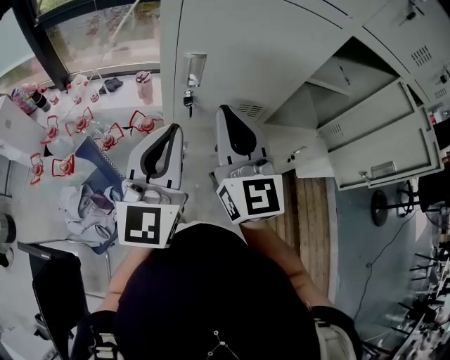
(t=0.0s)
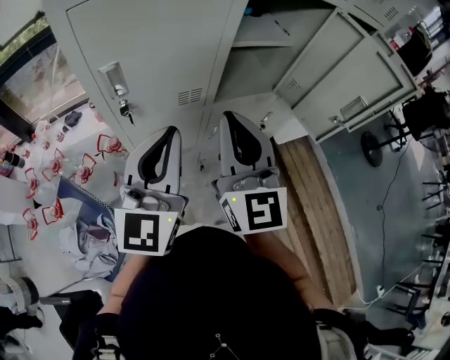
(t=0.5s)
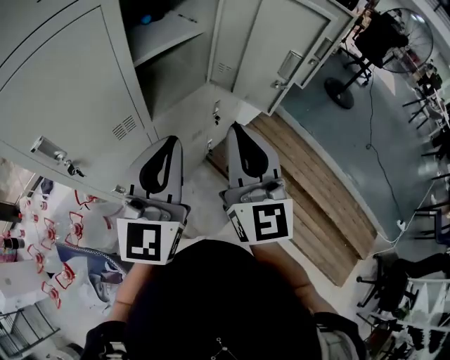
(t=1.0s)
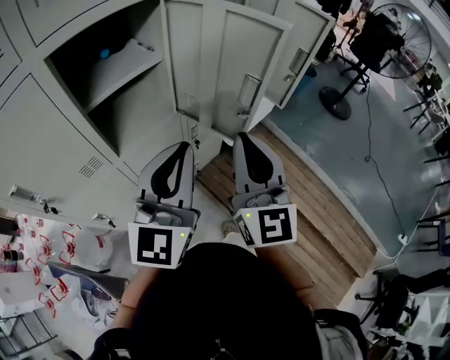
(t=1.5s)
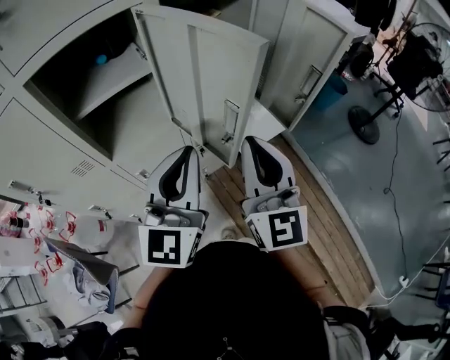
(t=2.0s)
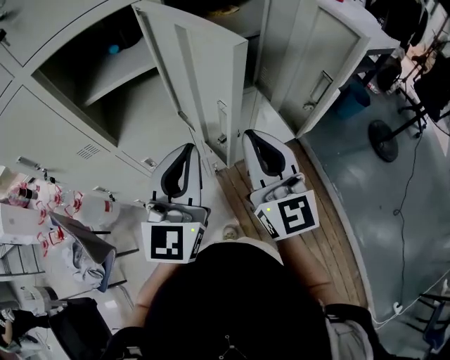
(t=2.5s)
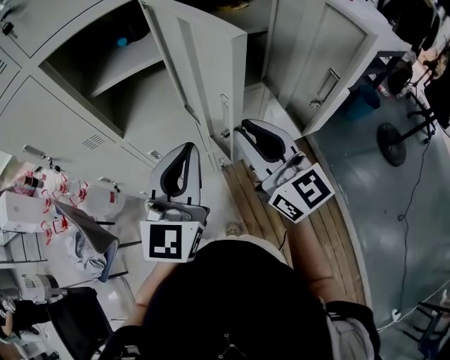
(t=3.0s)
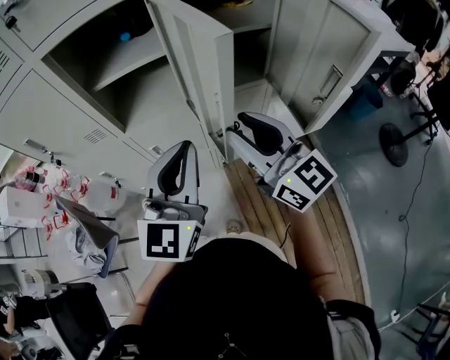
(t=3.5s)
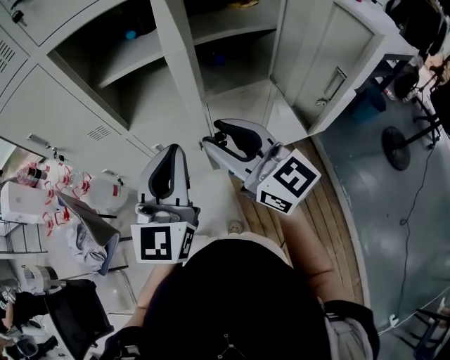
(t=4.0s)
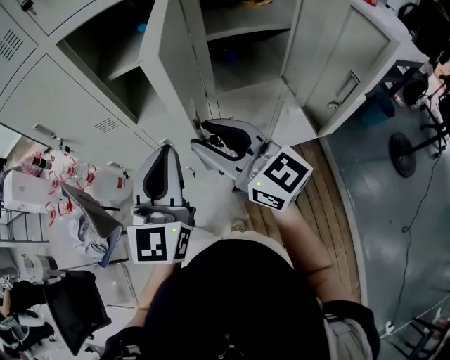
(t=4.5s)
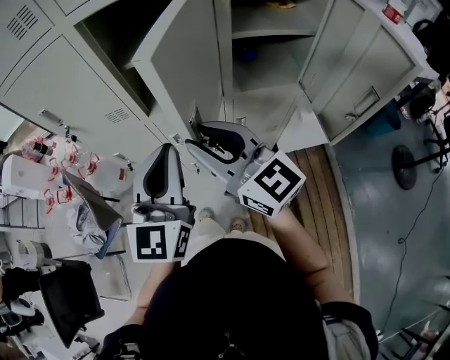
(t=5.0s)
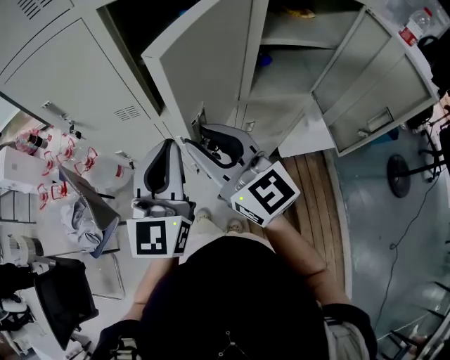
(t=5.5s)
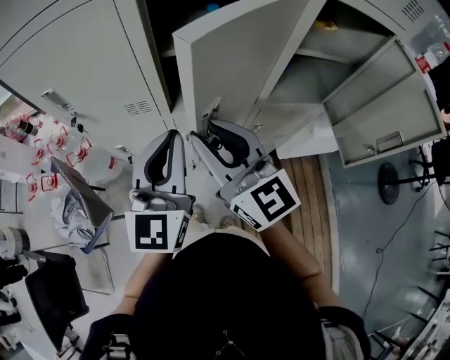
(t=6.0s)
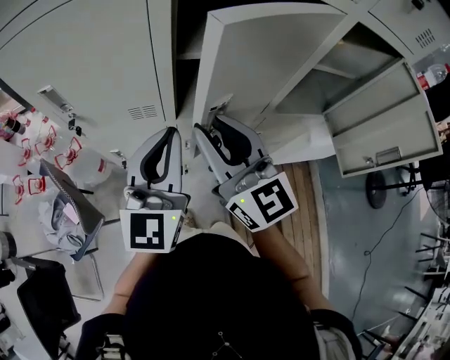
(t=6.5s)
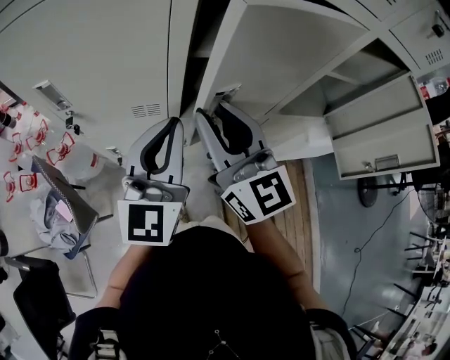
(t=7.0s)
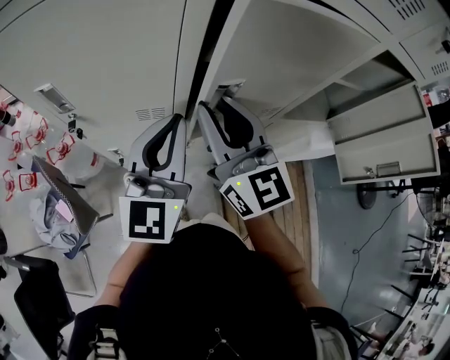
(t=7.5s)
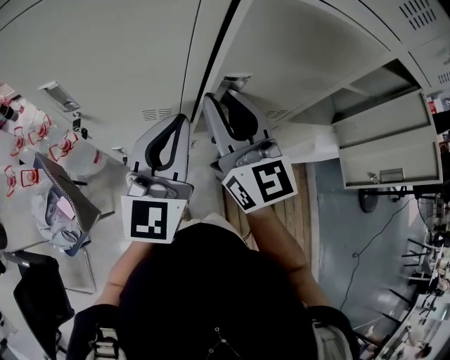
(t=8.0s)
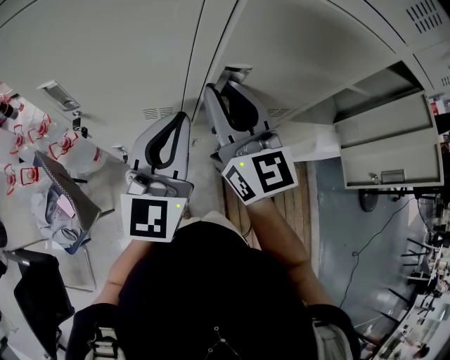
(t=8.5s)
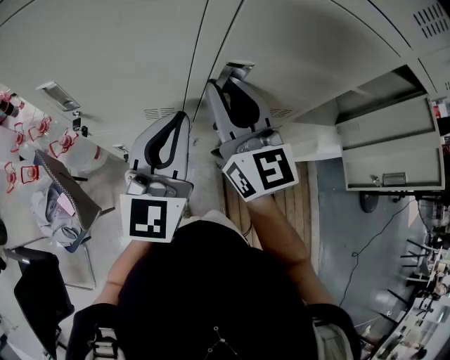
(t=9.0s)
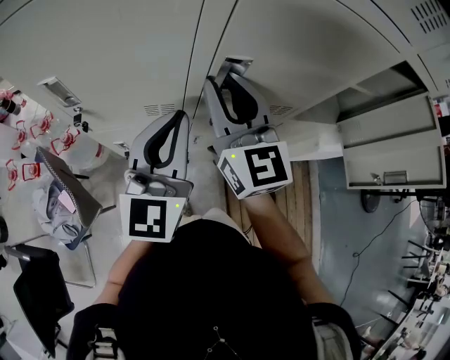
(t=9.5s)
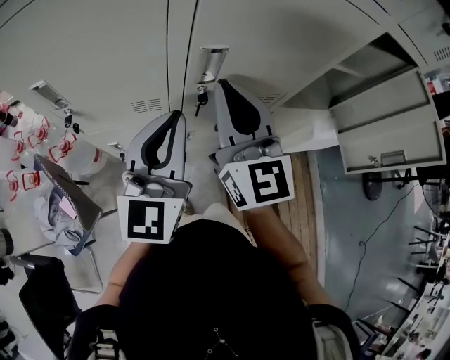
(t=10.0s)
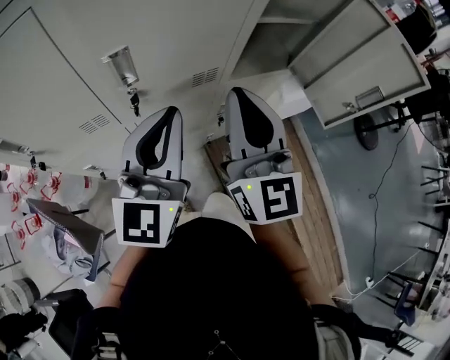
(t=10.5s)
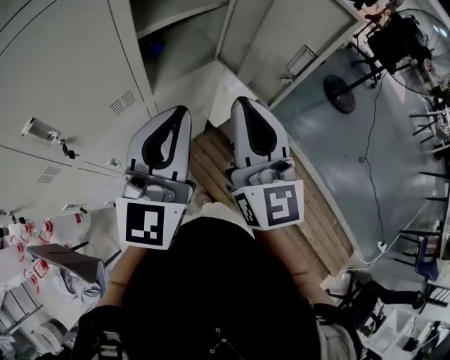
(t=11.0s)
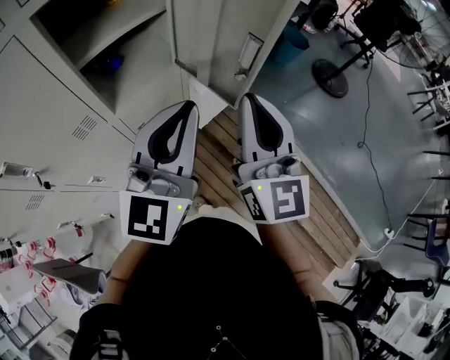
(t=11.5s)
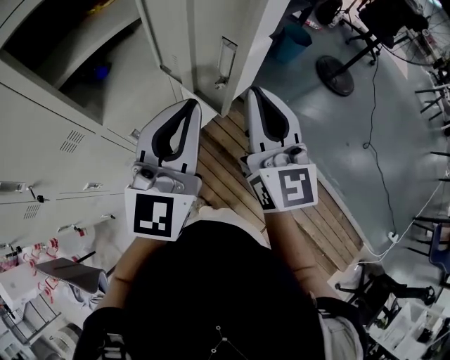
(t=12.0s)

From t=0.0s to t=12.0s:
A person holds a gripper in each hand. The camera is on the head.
From t=0.0s to t=2.0s: The pair of grippers is taken roughly 50 cm. The right gripper turns by approximately 30 degrees, while the left gripper rotates approximately 30 degrees.
From t=2.0s to t=4.0s: The right gripper ends up about 5 cm from where it was, turns by approximately 50 degrees, and opens its fingers.
From t=4.0s to t=6.0s: Both grippers move to the left and forward, some 20 cm.
From t=6.0s to t=8.0s: Both grippers move forward and to the left, some 10 cm.
From t=8.0s to t=10.0s: The right gripper closes.
From t=10.0s to t=12.0s: The two grippers travel together, some 50 cm. The right gripper turns by some 40 degrees, while the left gripper rotates about 40 degrees.

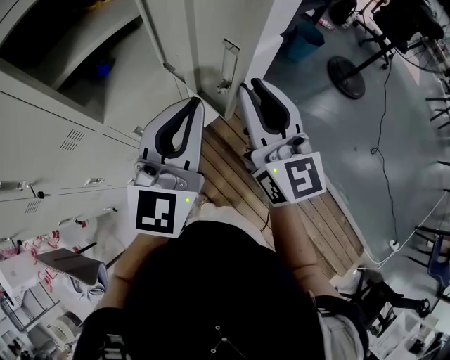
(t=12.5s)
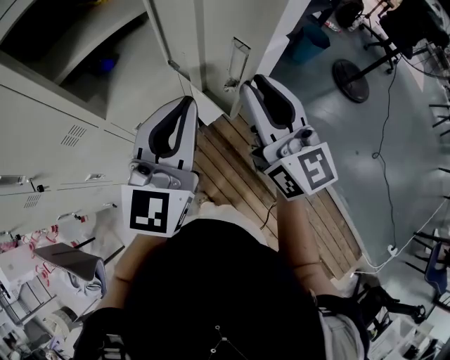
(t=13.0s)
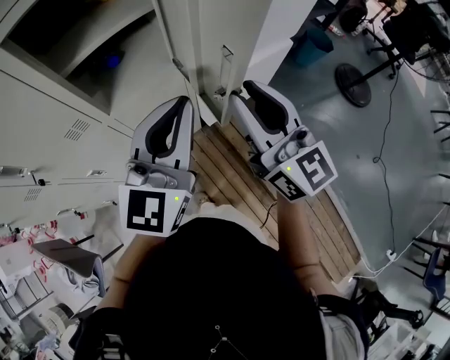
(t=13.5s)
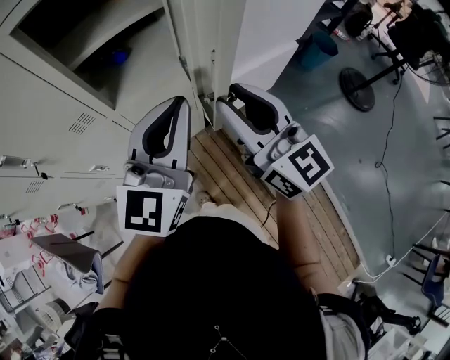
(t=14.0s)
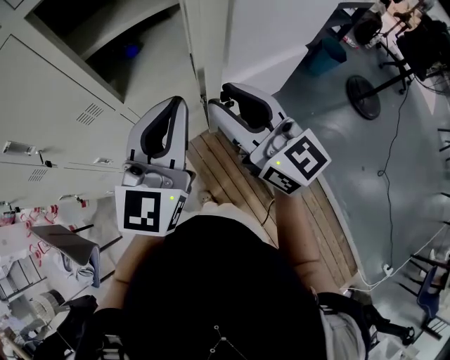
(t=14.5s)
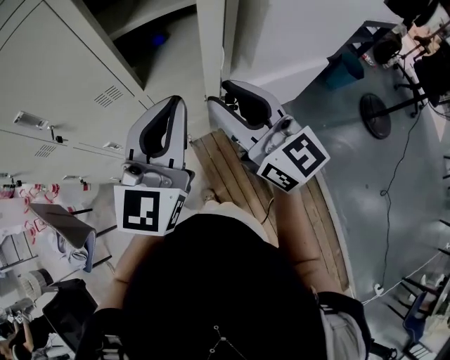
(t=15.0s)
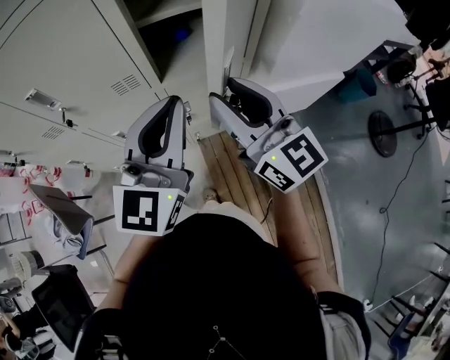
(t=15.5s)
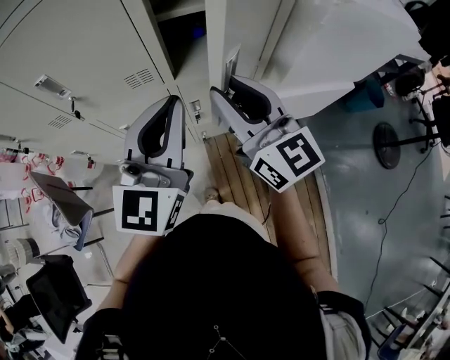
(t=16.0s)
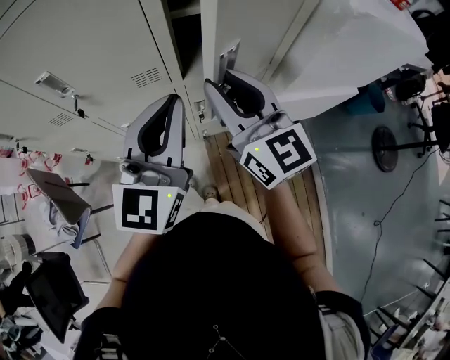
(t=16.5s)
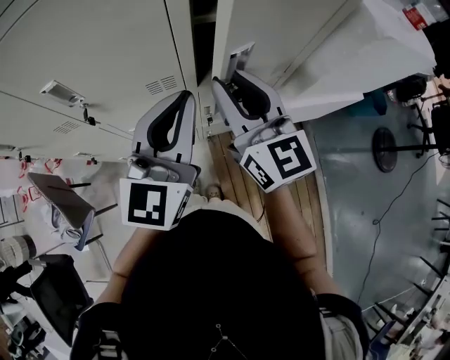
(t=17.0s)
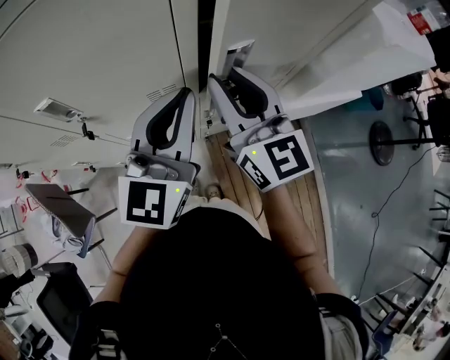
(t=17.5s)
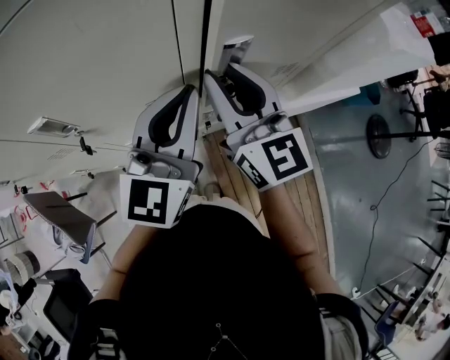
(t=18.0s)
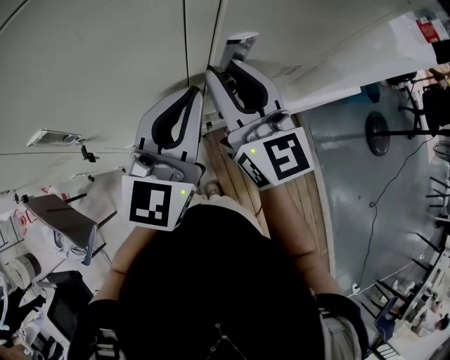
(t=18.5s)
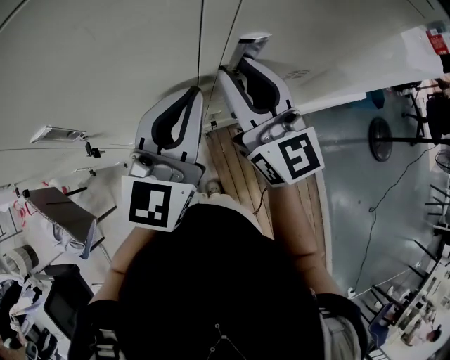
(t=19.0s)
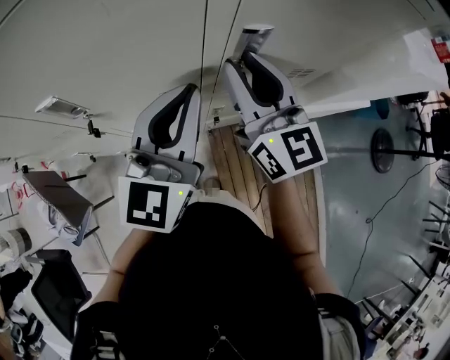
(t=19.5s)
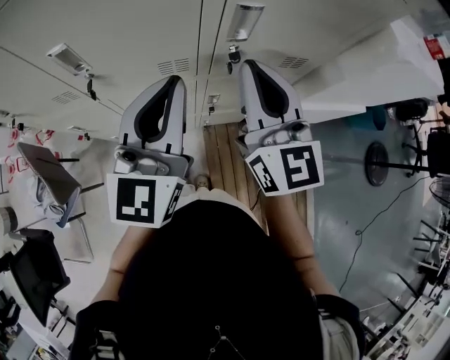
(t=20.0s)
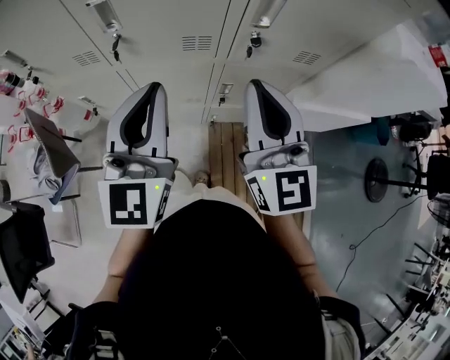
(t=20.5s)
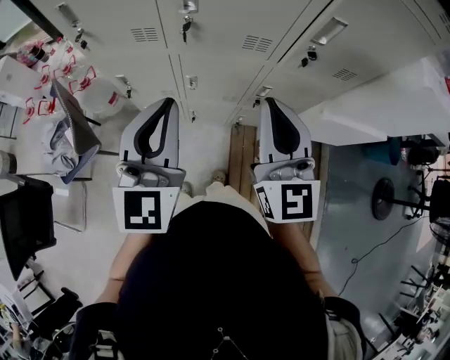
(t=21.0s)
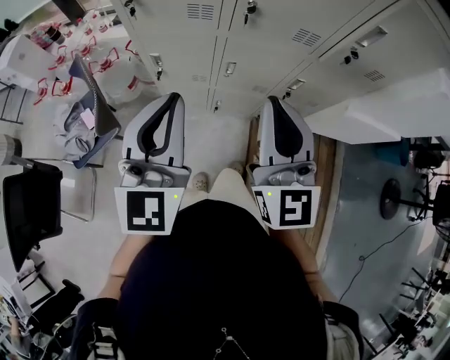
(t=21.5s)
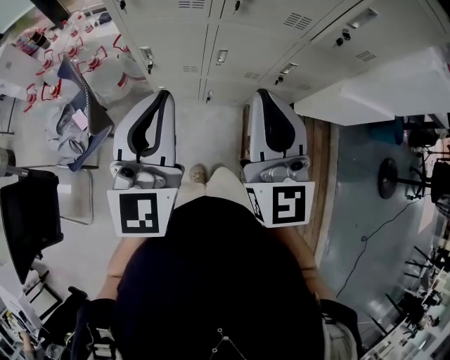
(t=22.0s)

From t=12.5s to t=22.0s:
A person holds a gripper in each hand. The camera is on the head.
From t=12.5s to t=14.5s: Both grippers move to the left, roughly 10 cm. The right gripper turns by roughly 30 degrees.
From t=14.5s to t=16.5s: The left gripper goes about 15 cm to the left. Meanwhile the right gripper travels to the left and forward by some 15 cm.
From t=16.5s to t=18.0s: The right gripper travels forward and to the left by about 10 cm; the left gripper shifts roughly 10 cm forward.
From t=18.0s to t=20.0s: The two grippers go some 5 cm backward. The right gripper closes up.
From t=20.0s to t=22.0s: The two grippers go roughly 35 cm to the left and backward.

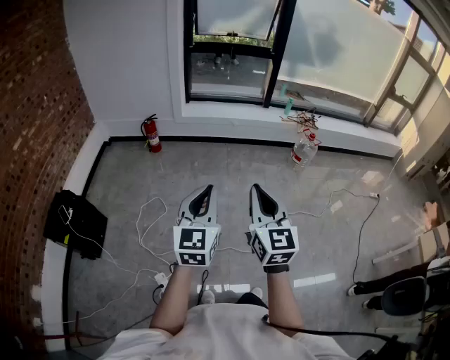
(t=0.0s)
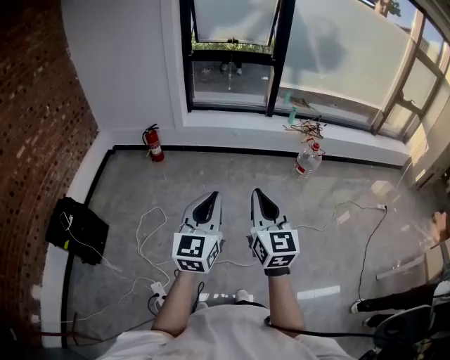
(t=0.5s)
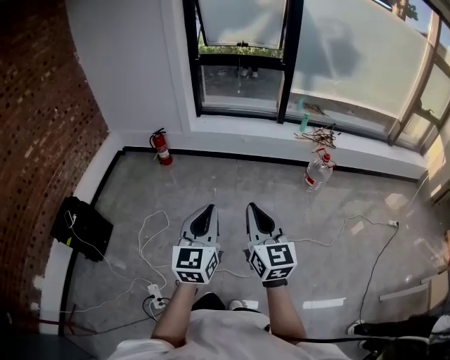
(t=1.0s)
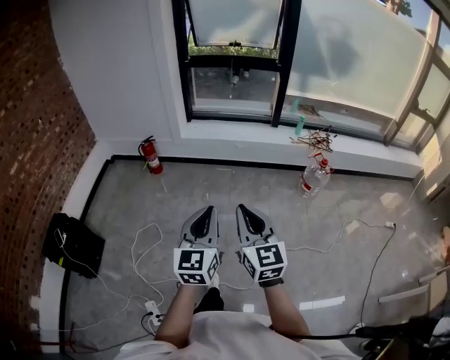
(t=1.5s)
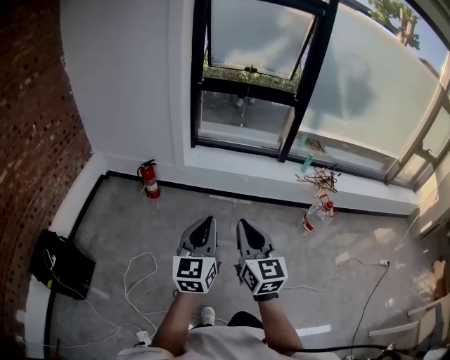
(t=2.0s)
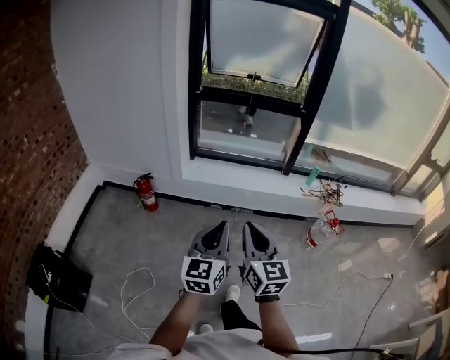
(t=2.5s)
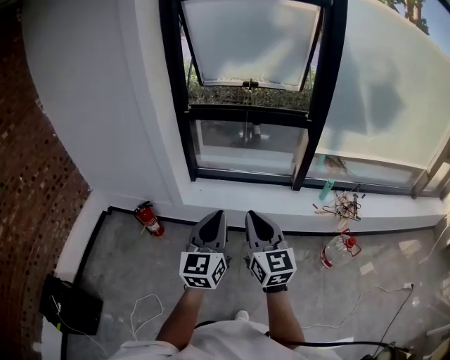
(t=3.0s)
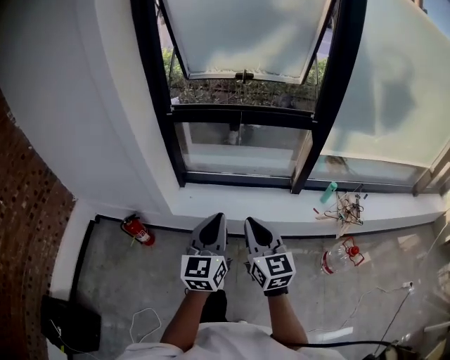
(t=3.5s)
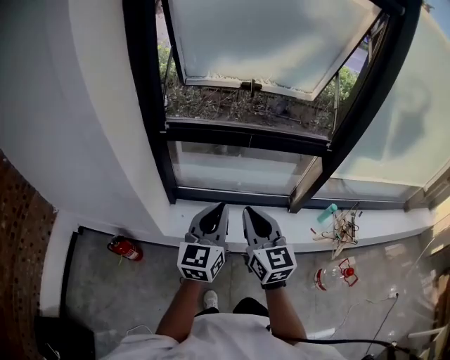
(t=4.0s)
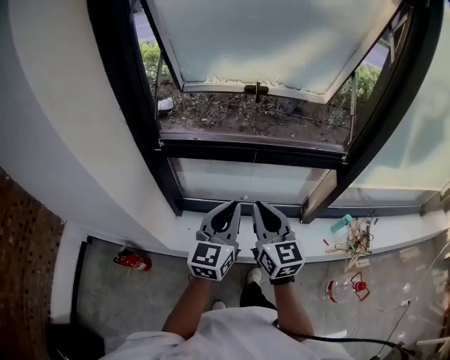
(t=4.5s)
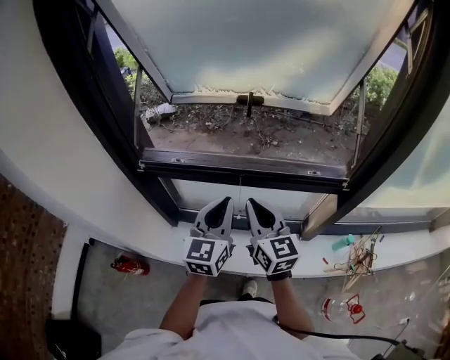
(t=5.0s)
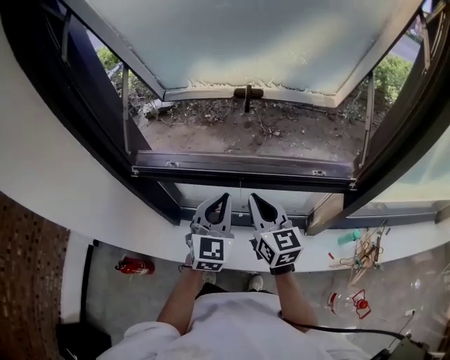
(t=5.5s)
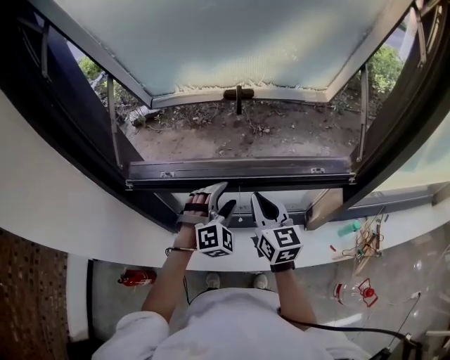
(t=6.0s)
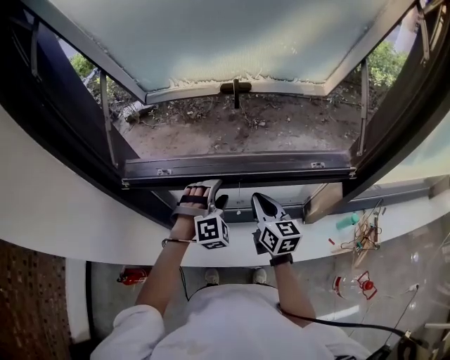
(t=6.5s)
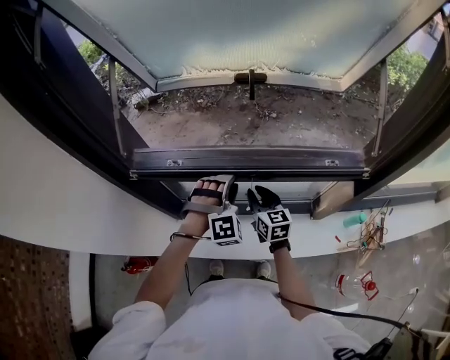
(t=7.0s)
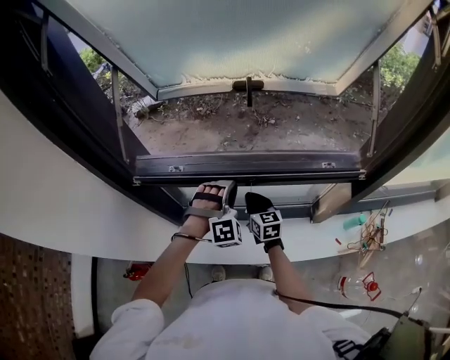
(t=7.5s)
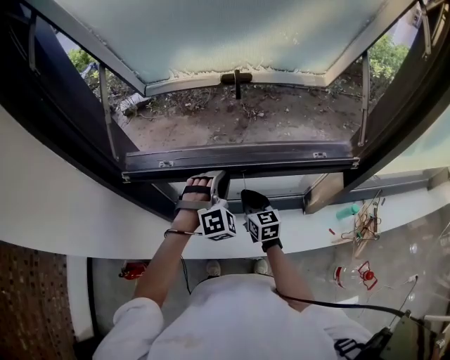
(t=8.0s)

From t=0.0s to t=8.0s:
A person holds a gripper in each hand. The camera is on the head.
From t=0.0s to t=2.0s: The two grippers travel together, forward, some 40 cm.
From t=2.0s to t=4.0s: The pair of grippers is taken forward, about 80 cm.
From t=4.0s to t=6.0s: Both grippers move forward, about 35 cm. The left gripper rolls clockwise, seen from behind, by roughly 70 degrees, and opens.
From t=6.0s to t=8.0s: The left gripper closes up, while the right gripper heads downward, covering roughly 15 cm.
